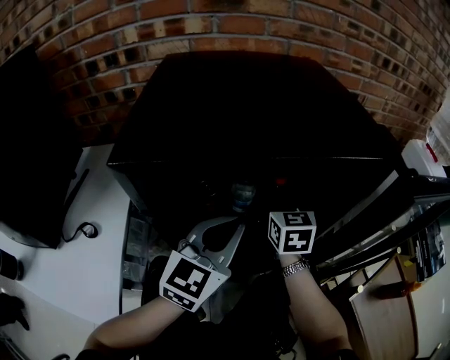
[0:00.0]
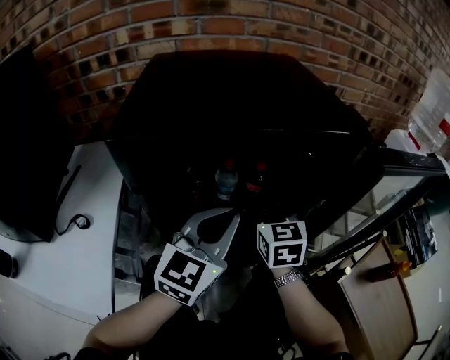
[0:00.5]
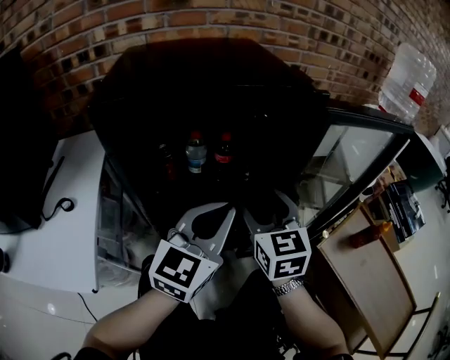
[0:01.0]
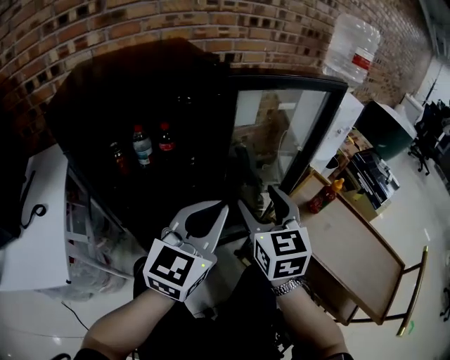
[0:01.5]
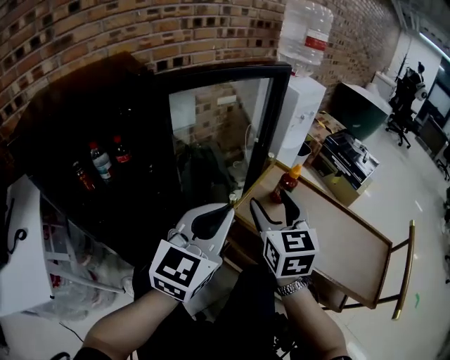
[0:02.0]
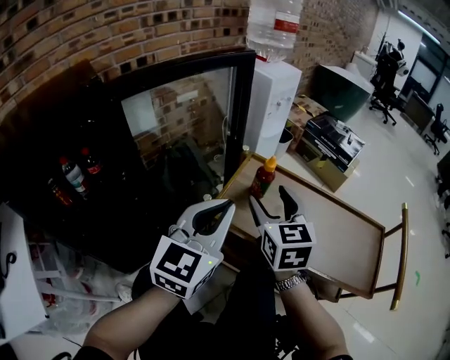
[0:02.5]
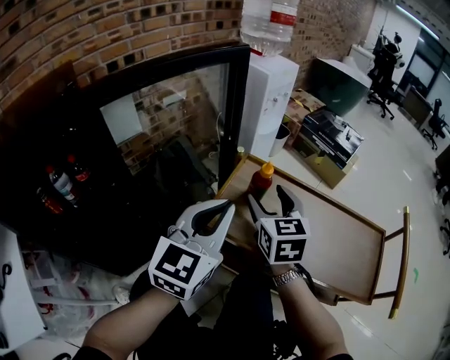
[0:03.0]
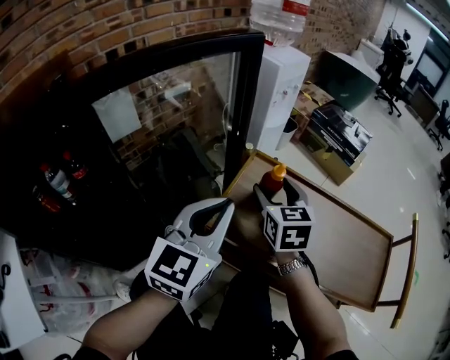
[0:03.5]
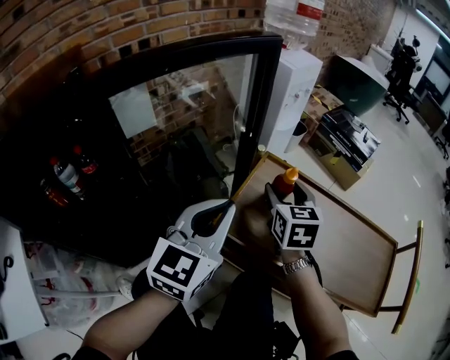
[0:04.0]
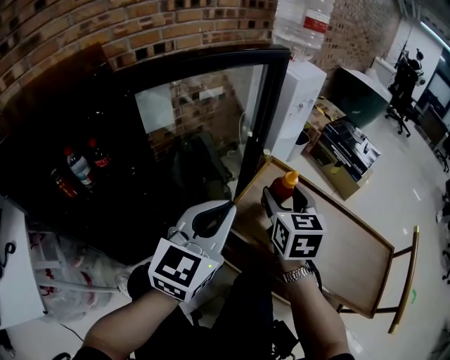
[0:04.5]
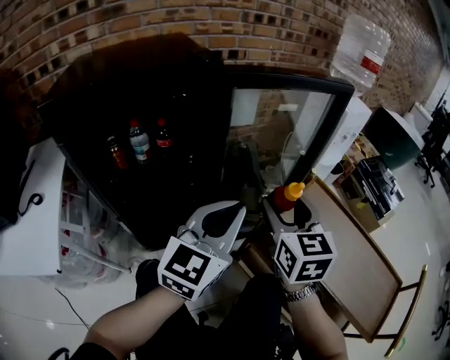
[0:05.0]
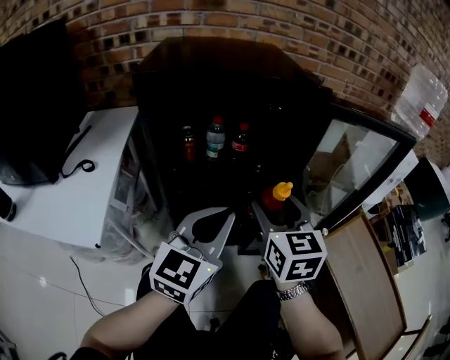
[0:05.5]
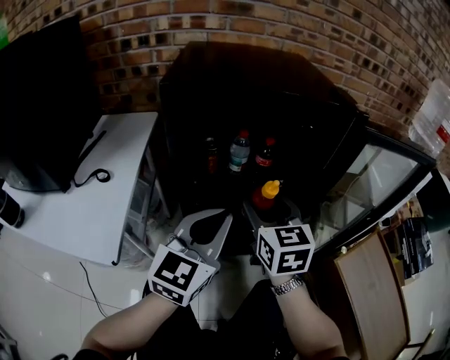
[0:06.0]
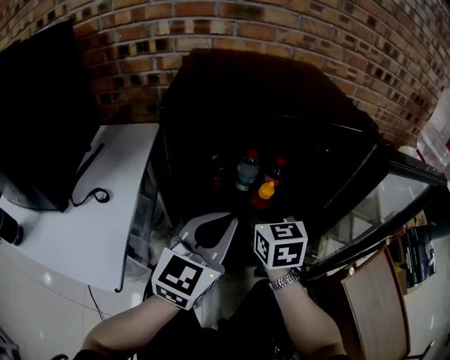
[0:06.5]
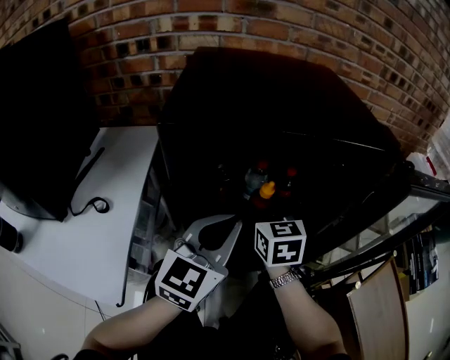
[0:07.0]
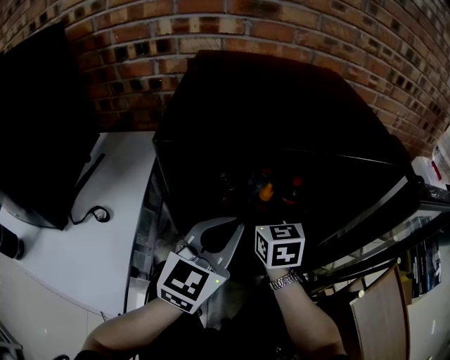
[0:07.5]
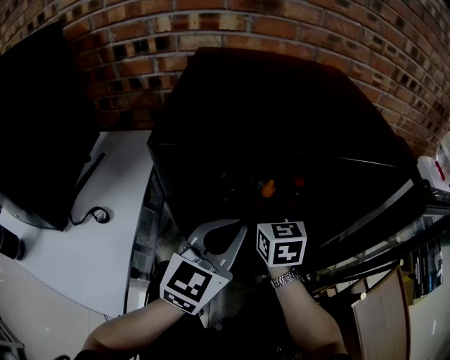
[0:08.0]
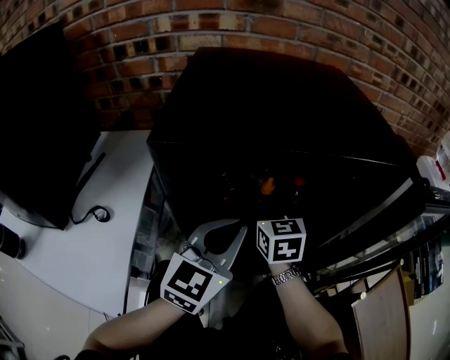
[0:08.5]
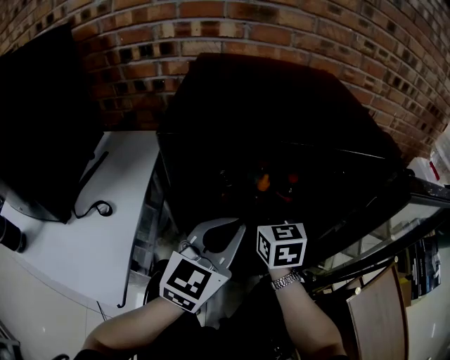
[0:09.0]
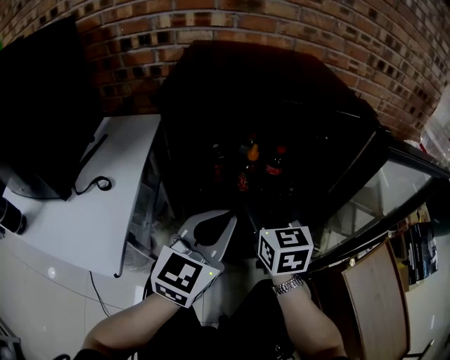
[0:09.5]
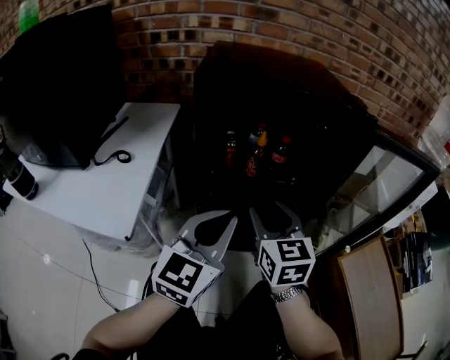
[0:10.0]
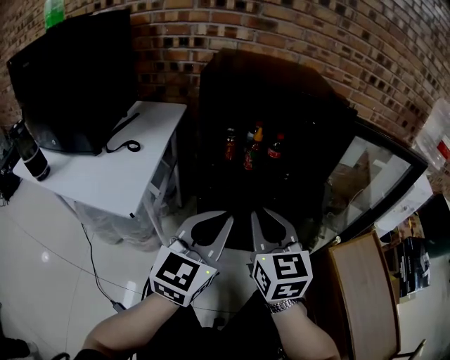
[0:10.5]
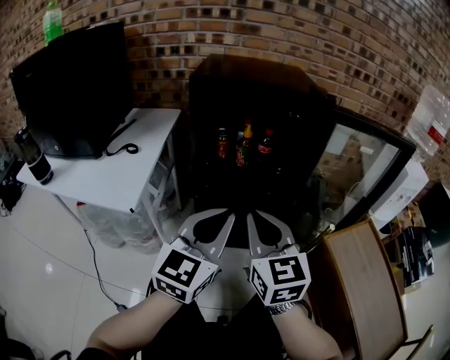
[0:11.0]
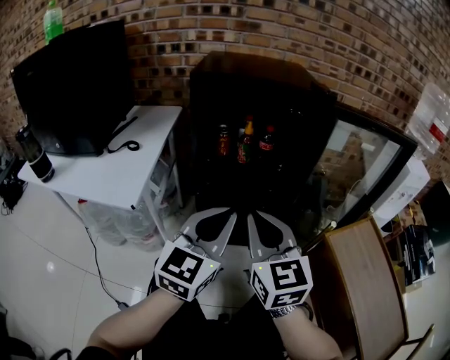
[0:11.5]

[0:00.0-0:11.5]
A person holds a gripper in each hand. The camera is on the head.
0:00.0 to 0:02.0: The right gripper ends up some 50 cm from where it was, and rotates some 30 degrees. The left gripper ends up some 40 cm from where it was, and changes its angle by roughly 30 degrees.
0:02.0 to 0:04.0: The right gripper shifts about 20 cm forward, downward and to the right, while the left gripper moves forward, roughly 10 cm.
0:04.0 to 0:06.0: The right gripper moves approximately 50 cm, and changes its angle by some 50 degrees, while the left gripper ends up some 40 cm from where it was, and swivels some 40 degrees.
0:06.0 to 0:07.5: The right gripper is displaced forward, to the left and downward by approximately 15 cm. The left gripper is displaced forward by approximately 10 cm.
0:07.5 to 0:09.5: Both grippers travel together backward, roughly 10 cm.
0:09.5 to 0:11.5: Both grippers move backward, some 20 cm. The right gripper closes.

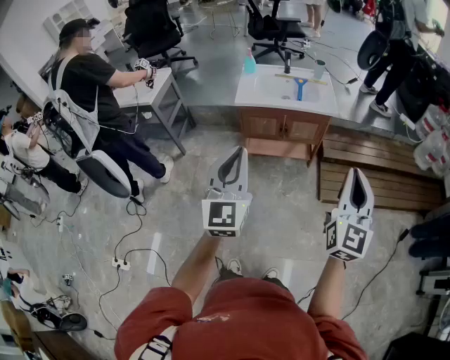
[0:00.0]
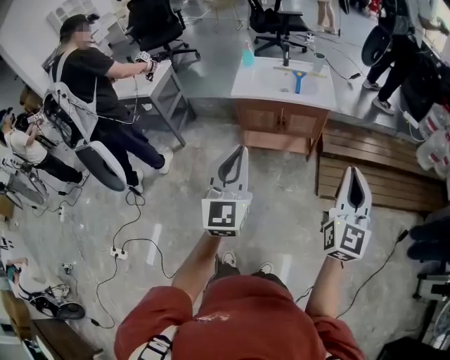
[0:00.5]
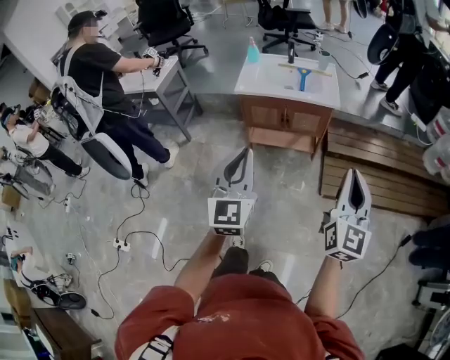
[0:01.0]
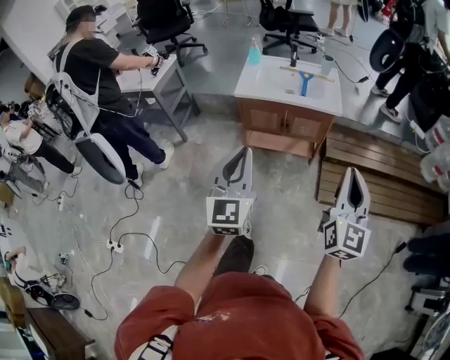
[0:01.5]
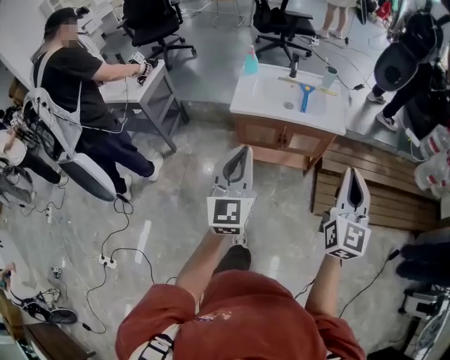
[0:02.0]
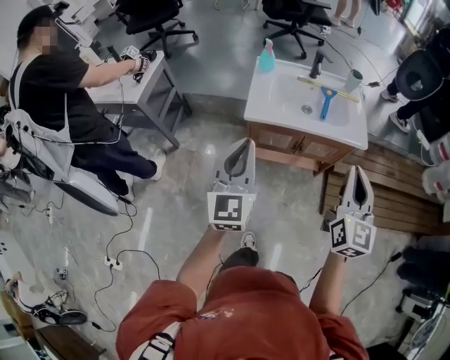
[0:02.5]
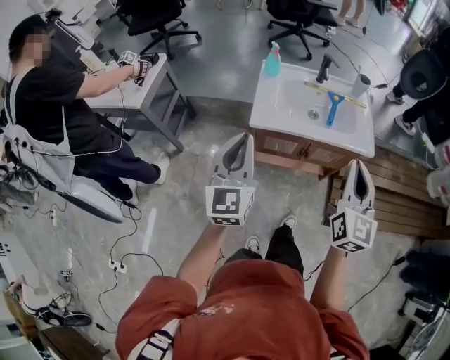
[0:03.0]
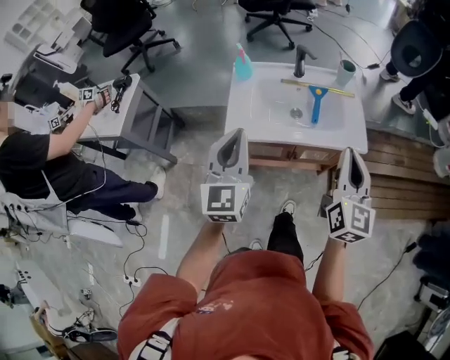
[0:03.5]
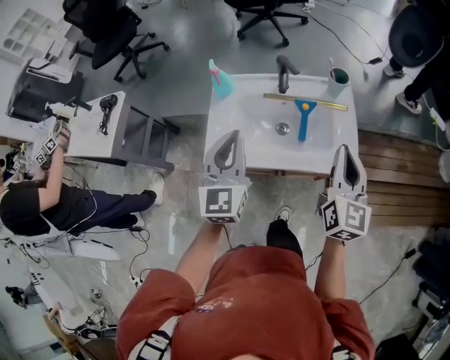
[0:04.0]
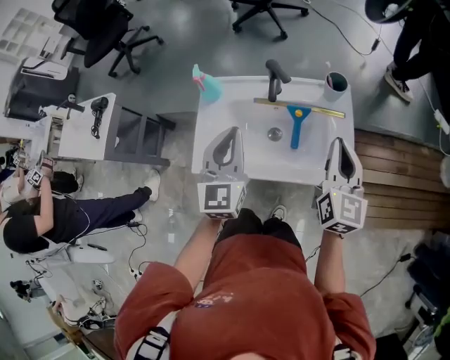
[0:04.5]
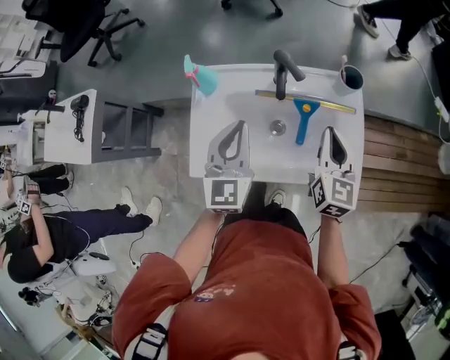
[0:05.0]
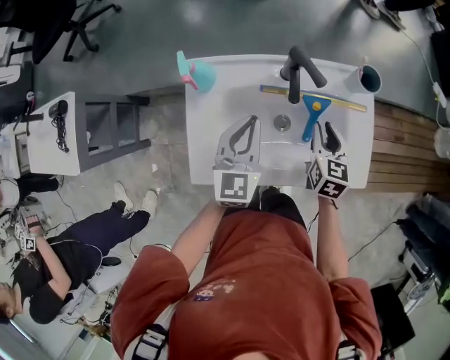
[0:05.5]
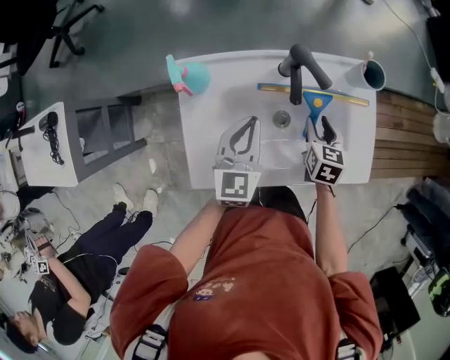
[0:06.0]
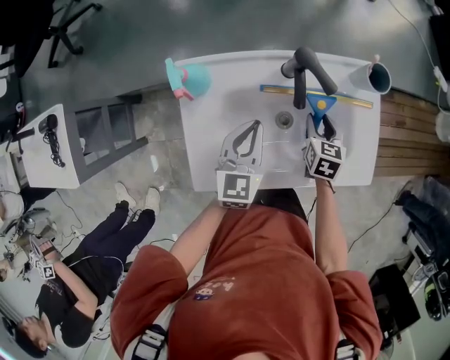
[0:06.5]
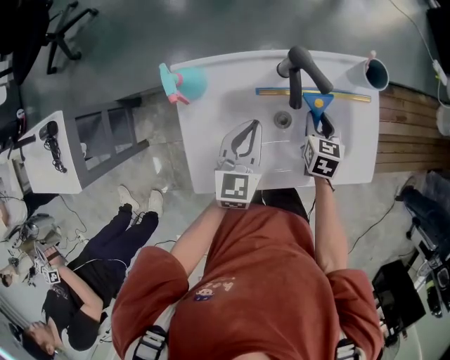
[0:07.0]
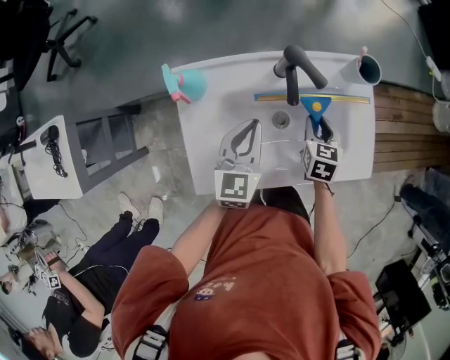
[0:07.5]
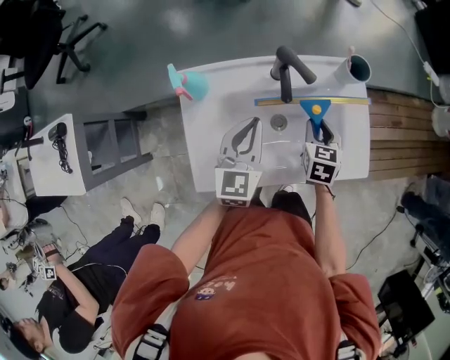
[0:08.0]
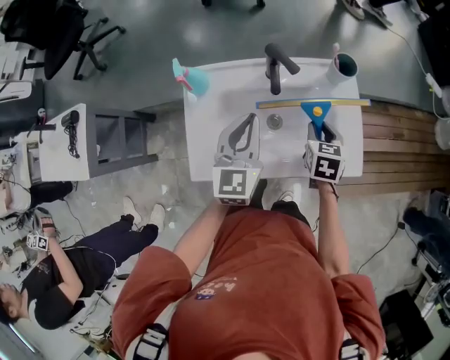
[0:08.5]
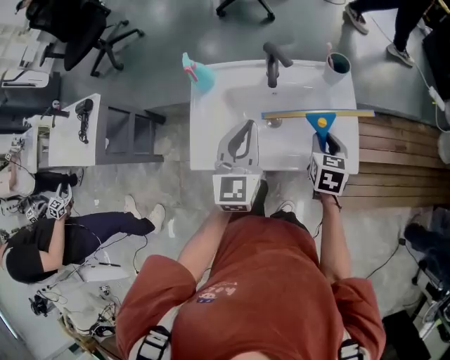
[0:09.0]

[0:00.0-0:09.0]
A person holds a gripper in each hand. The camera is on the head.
0:00.0 to 0:02.0: The two grippers go about 20 cm forward.
0:02.0 to 0:04.5: Both grippers are carried forward, approximately 60 cm.
0:04.5 to 0:07.0: The two grippers go roughly 30 cm downward and forward. The left gripper turns by approximately 30 degrees, while the right gripper points its fingers some 40 degrees further downward, and opens its fingers.
0:07.0 to 0:09.0: The grippers both shift upward, backward and to the right by some 20 cm. The left gripper swivels approximately 20 degrees.

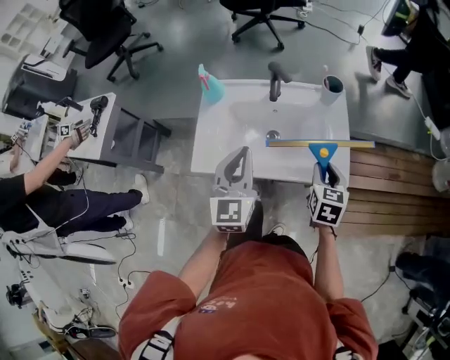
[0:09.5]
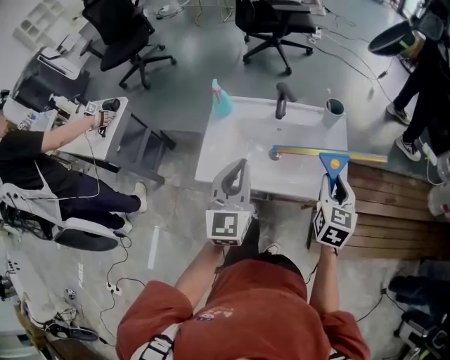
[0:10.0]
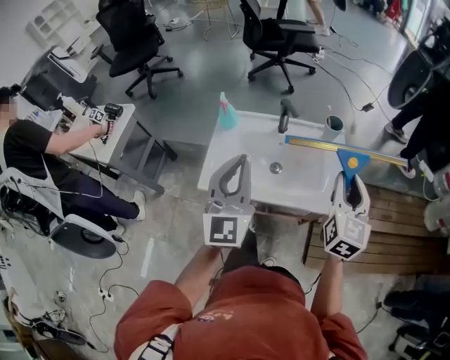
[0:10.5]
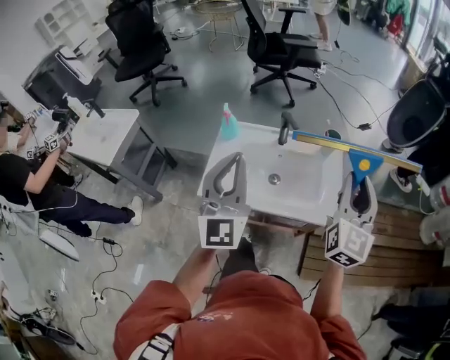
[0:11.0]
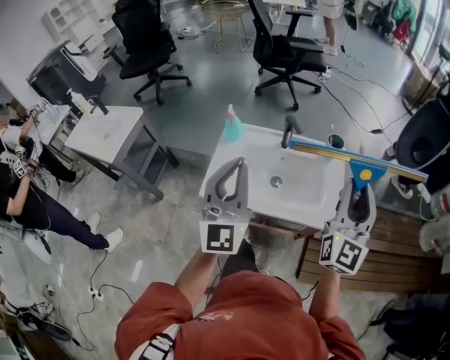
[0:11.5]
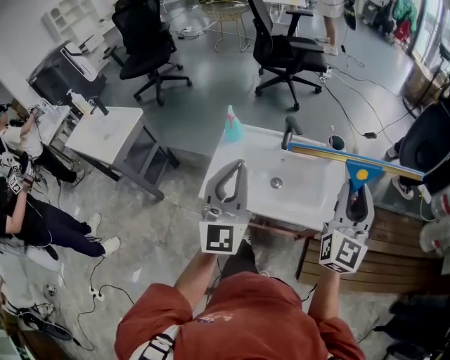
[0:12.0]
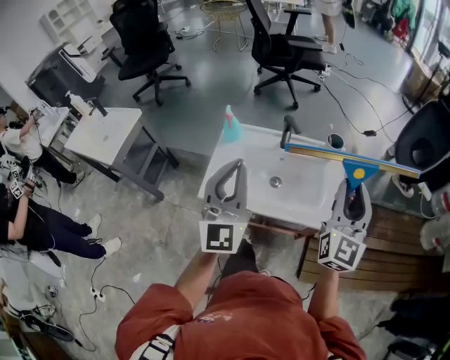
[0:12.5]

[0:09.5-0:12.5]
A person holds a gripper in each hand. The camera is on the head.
0:09.5 to 0:11.0: Both grippers move upward, roughly 20 cm. The left gripper turns by about 30 degrees, while the right gripper angles its fingers upward, by some 40 degrees.
0:11.0 to 0:12.5: The grippers make only small movements.

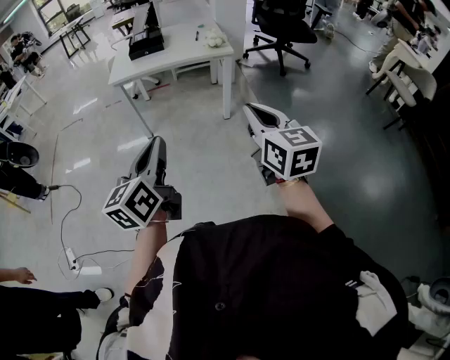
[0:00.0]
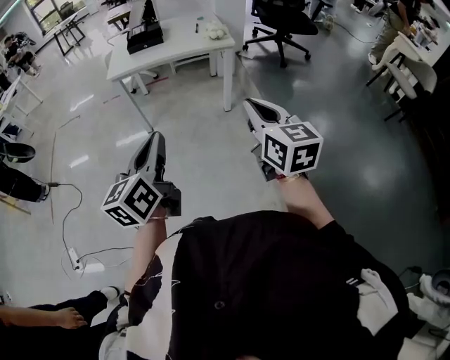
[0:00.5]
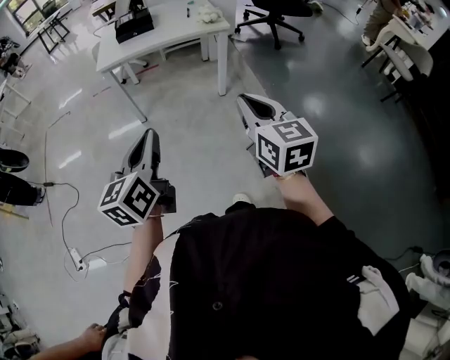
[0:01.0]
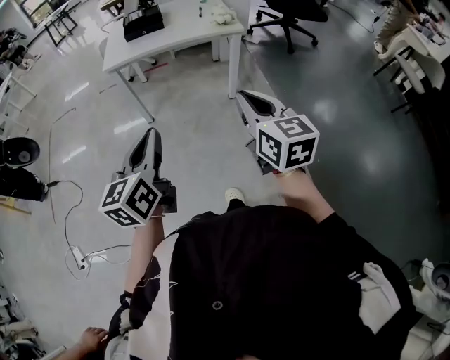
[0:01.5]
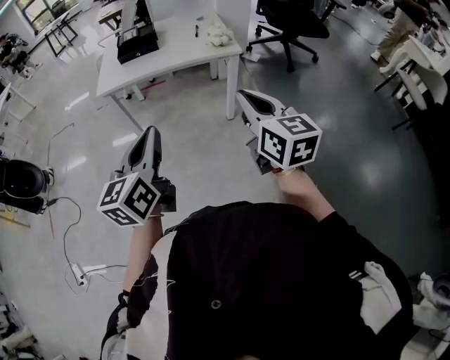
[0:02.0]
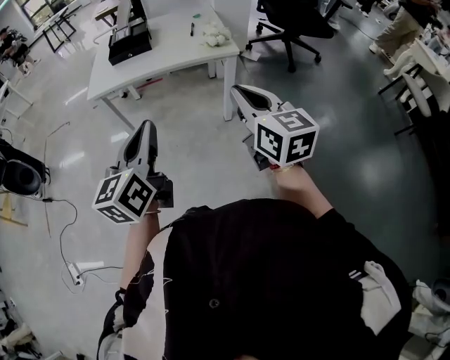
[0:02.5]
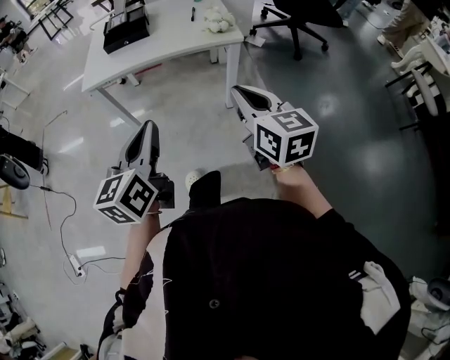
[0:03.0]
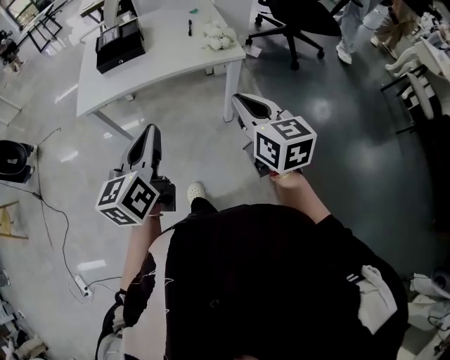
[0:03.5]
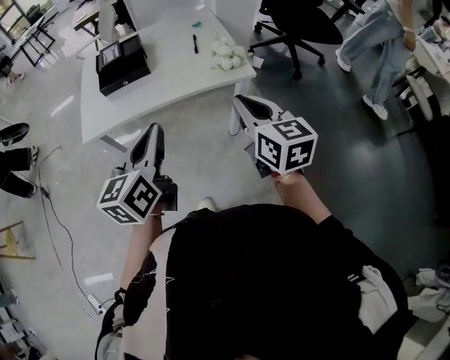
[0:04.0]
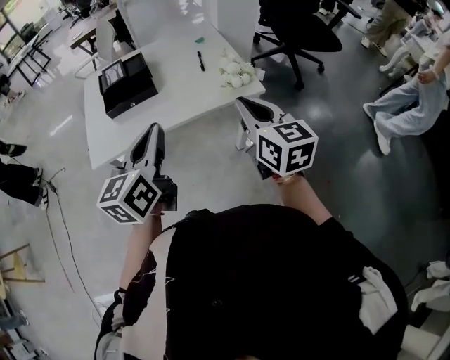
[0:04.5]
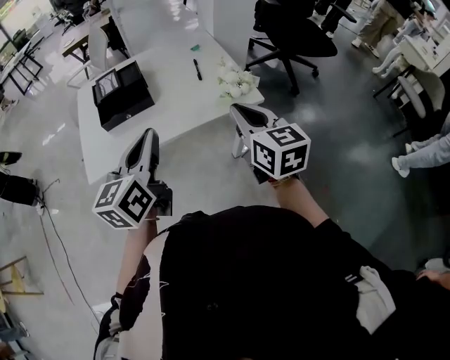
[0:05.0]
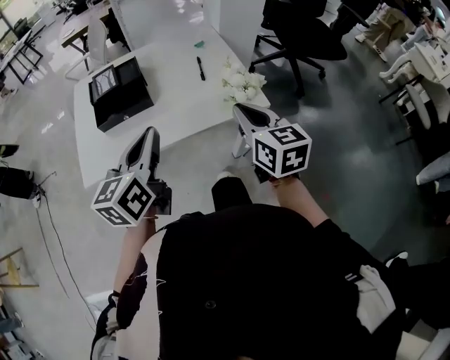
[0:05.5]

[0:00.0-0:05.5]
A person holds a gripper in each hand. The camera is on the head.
0:00.0 to 0:02.0: Both grippers move forward, roughly 20 cm.
0:02.0 to 0:03.5: Both grippers travel together forward, approximately 20 cm.
0:03.5 to 0:05.5: The grippers both shift forward by roughly 25 cm.
